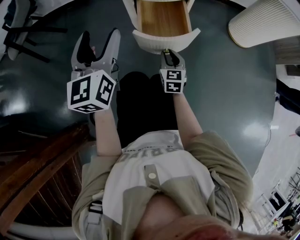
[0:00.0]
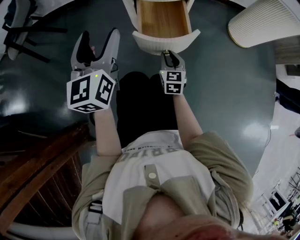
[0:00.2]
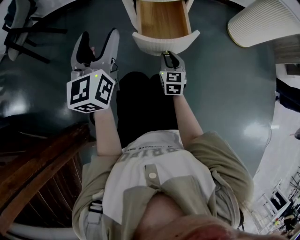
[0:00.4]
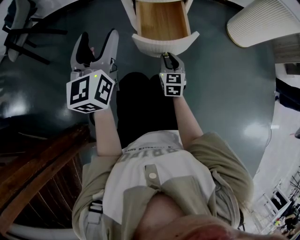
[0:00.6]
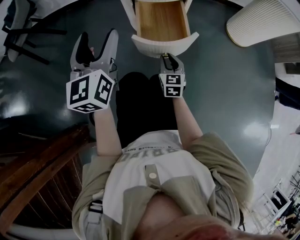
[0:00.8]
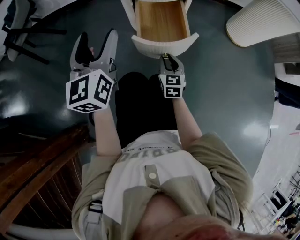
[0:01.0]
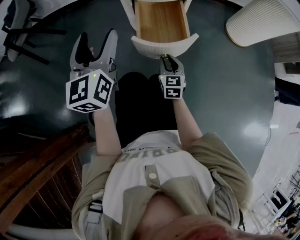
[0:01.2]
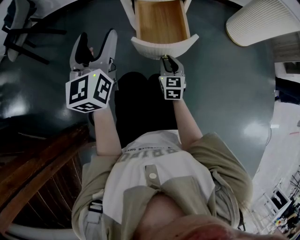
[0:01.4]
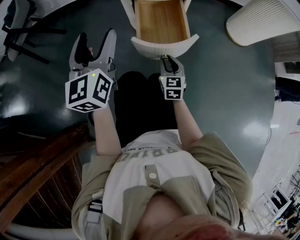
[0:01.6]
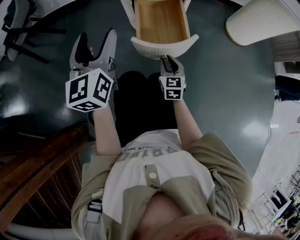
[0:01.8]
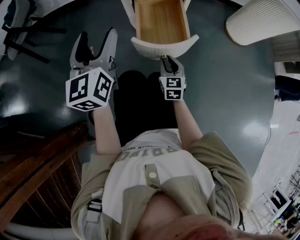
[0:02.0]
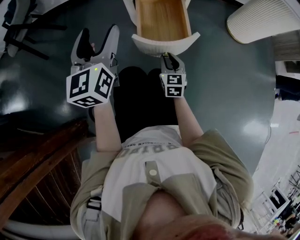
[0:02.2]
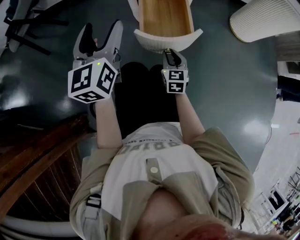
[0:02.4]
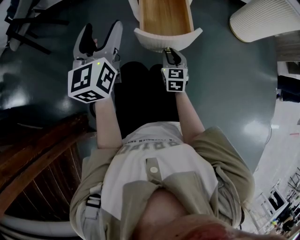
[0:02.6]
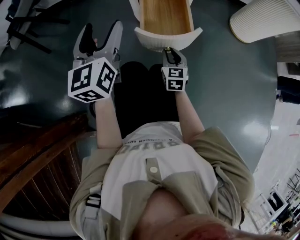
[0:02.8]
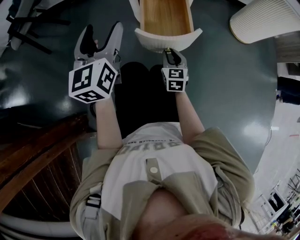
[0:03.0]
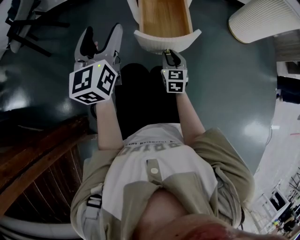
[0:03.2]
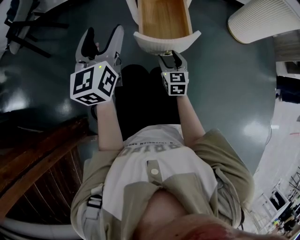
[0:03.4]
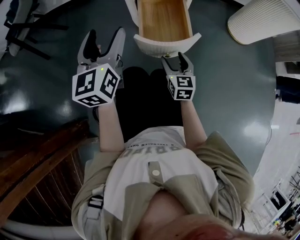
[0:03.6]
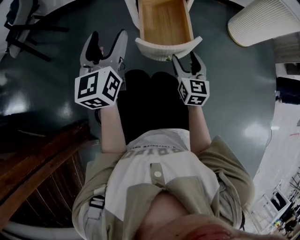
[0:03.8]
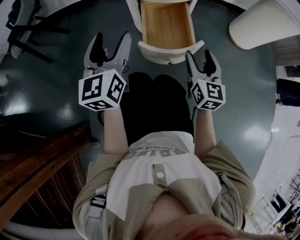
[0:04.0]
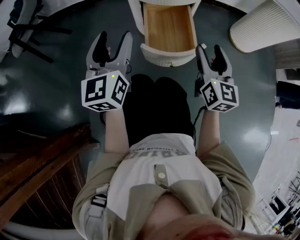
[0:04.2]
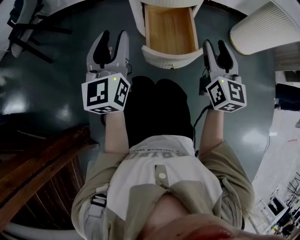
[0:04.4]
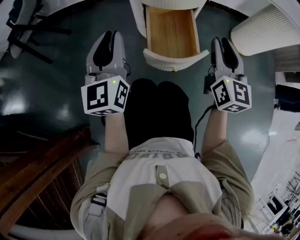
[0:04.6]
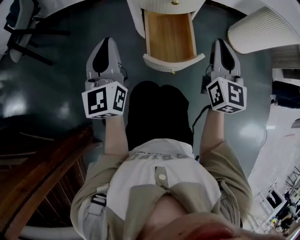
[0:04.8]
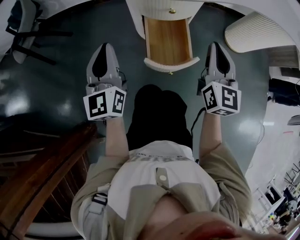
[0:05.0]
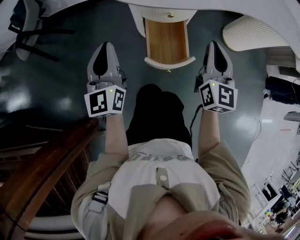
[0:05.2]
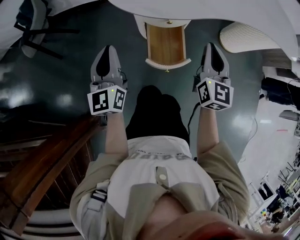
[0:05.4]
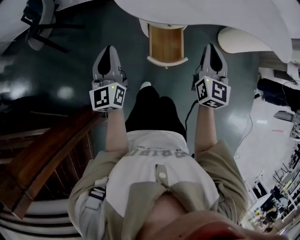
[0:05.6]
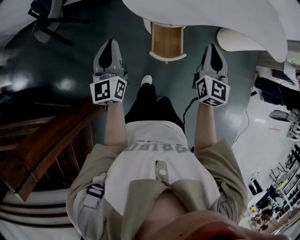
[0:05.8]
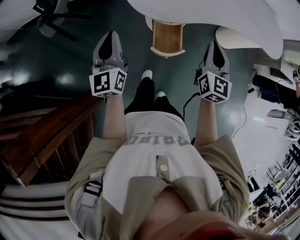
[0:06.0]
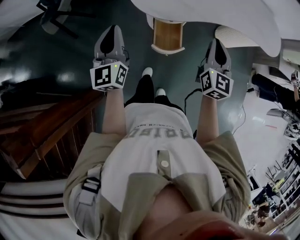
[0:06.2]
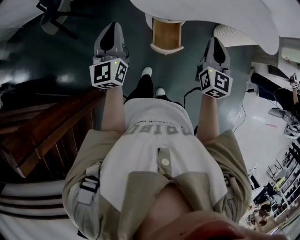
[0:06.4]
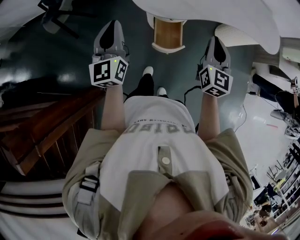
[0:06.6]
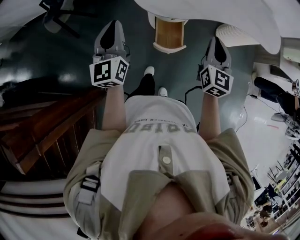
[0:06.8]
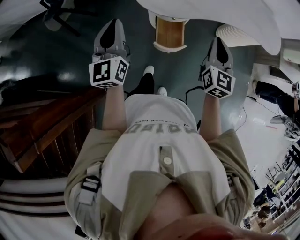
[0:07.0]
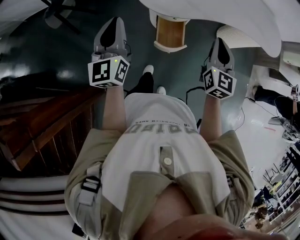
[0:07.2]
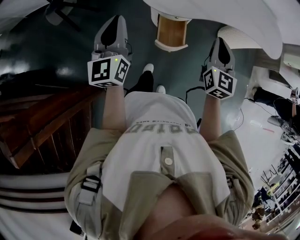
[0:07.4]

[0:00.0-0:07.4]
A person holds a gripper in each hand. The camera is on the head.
0:00.0 to 0:03.0: The grippers make only small movements.
0:03.0 to 0:04.4: The right gripper moves upward, approximately 25 cm, and turns by some 20 degrees. Meanwhile the left gripper closes.
0:04.4 to 0:06.0: The grippers both shift upward by some 40 cm. The right gripper closes up; the left gripper closes.
0:06.0 to 0:07.4: The left gripper is displaced upward by some 10 cm. Meanwhile the right gripper shifts approximately 5 cm upward.

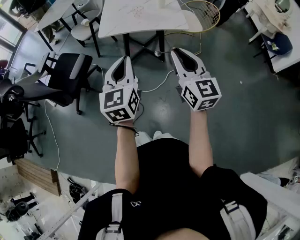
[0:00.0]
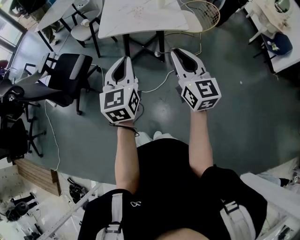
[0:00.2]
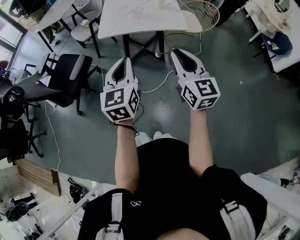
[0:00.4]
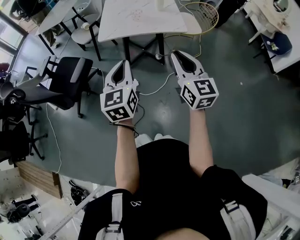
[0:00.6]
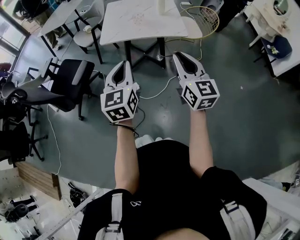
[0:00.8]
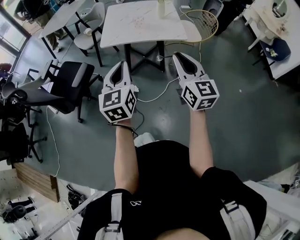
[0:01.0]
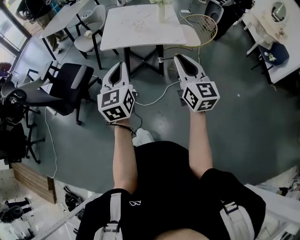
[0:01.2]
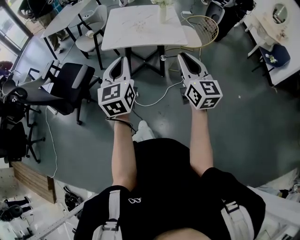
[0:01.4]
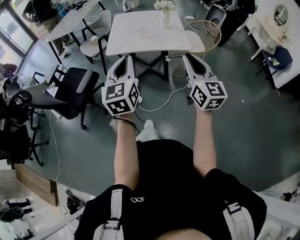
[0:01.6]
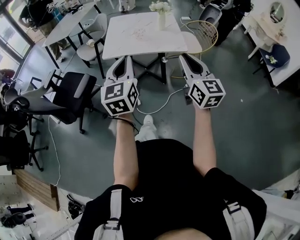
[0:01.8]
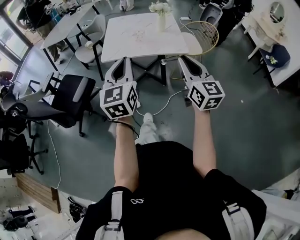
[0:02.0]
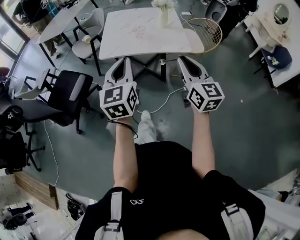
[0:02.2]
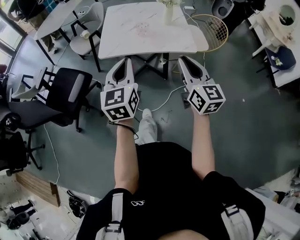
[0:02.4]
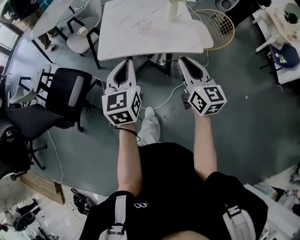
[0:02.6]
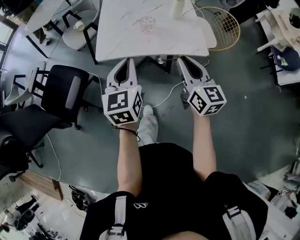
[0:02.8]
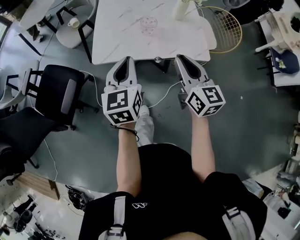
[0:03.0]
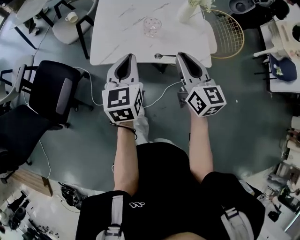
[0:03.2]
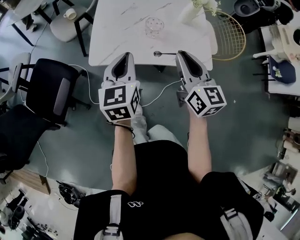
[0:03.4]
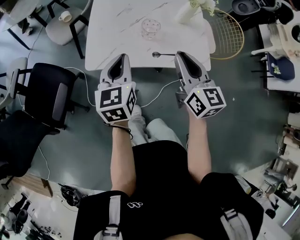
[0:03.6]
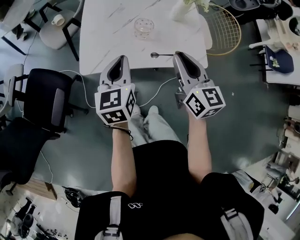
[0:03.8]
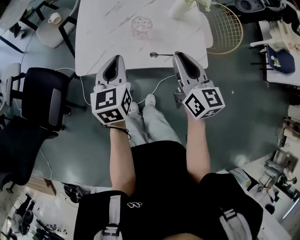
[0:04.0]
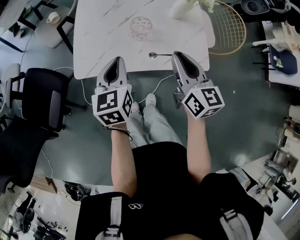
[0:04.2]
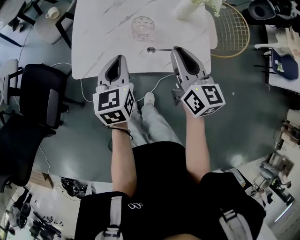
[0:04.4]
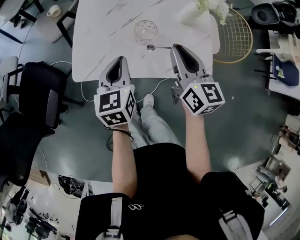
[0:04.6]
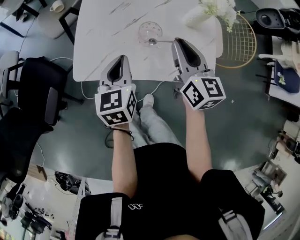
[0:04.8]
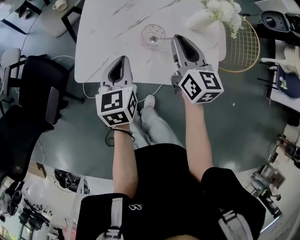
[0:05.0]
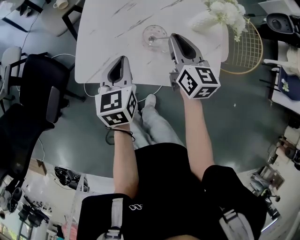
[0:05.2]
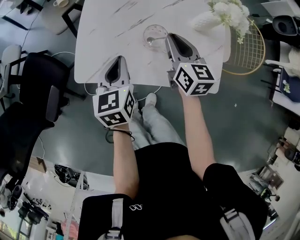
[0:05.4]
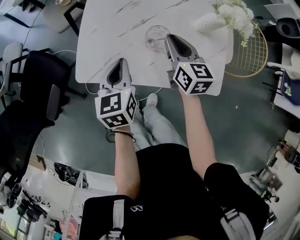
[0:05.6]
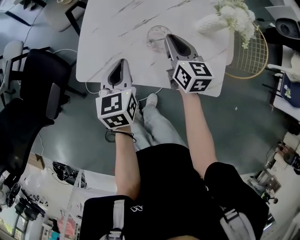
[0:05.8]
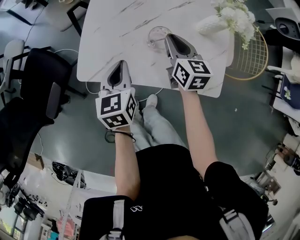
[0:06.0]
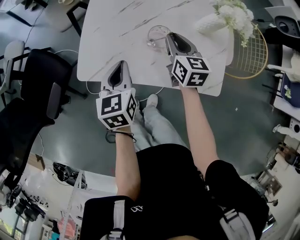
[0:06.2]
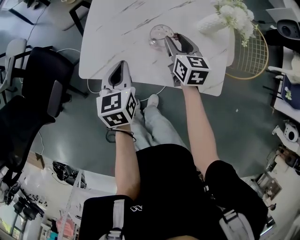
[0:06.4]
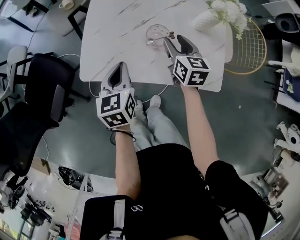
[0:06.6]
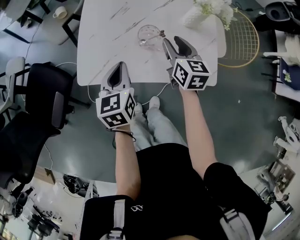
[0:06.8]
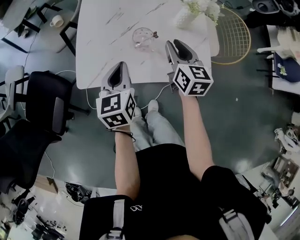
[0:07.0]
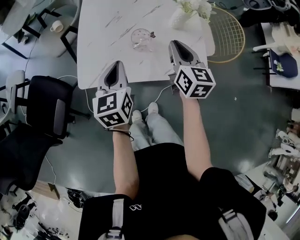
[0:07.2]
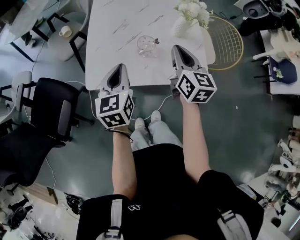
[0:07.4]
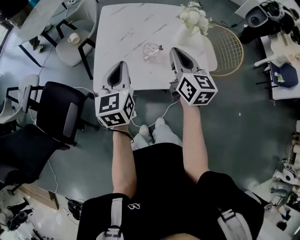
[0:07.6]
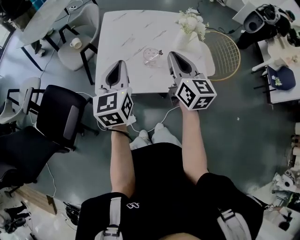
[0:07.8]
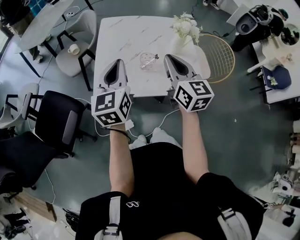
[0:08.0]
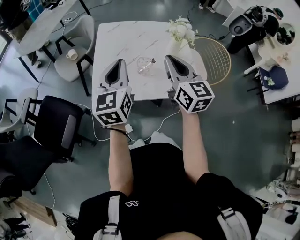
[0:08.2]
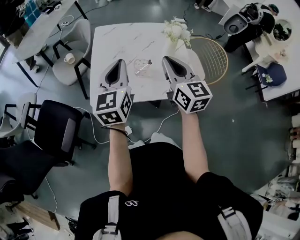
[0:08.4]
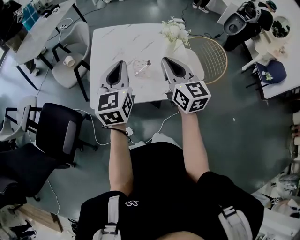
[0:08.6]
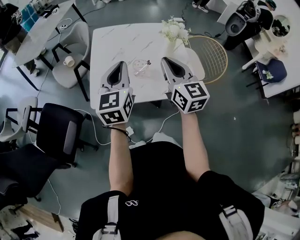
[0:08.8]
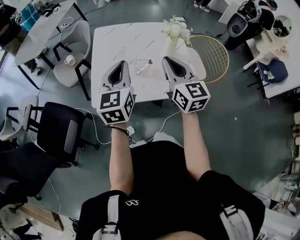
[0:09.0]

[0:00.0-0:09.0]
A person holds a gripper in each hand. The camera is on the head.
0:00.0 to 0:01.6: The left gripper heads forward, covering some 5 cm. Meanwhile the right gripper changes place by about 5 cm.
0:01.6 to 0:03.0: The right gripper moves forward, approximately 30 cm. Meanwhile the left gripper travels forward and downward by approximately 35 cm.
0:03.0 to 0:04.4: The right gripper travels forward by about 15 cm; the left gripper shifts approximately 15 cm forward and downward.
0:04.4 to 0:06.0: The left gripper moves downward, some 5 cm; the right gripper moves forward and downward, some 20 cm.
0:06.0 to 0:07.6: The left gripper moves upward, about 15 cm, and turns by some 20 degrees. The right gripper is displaced upward and backward by roughly 25 cm, changes its angle by approximately 20 degrees, and opens, then closes once more.
0:07.6 to 0:09.0: The right gripper changes place by some 5 cm. The left gripper travels upward by some 5 cm.

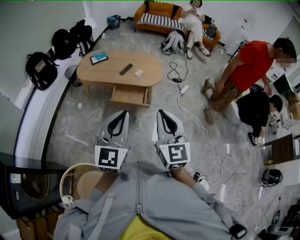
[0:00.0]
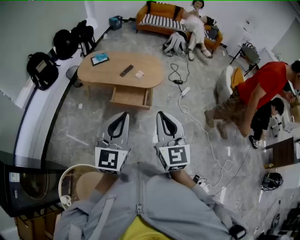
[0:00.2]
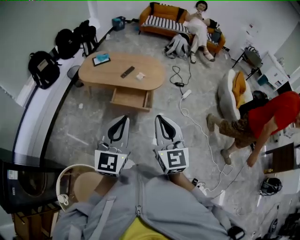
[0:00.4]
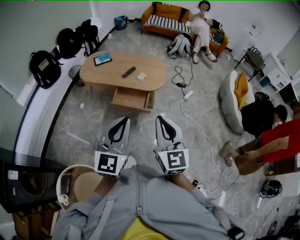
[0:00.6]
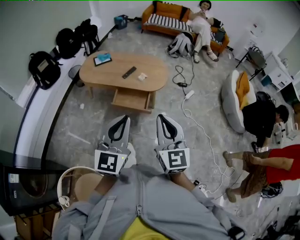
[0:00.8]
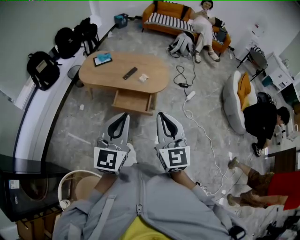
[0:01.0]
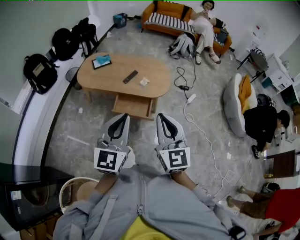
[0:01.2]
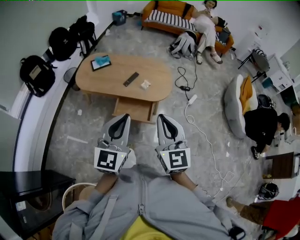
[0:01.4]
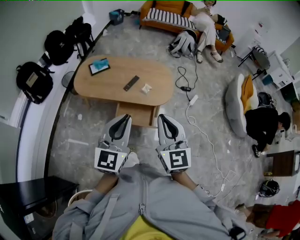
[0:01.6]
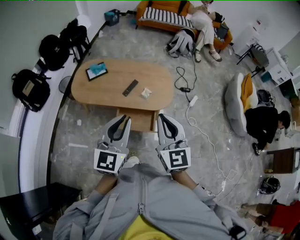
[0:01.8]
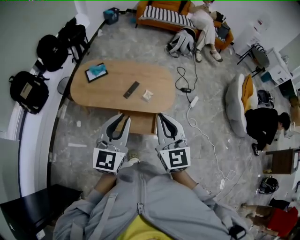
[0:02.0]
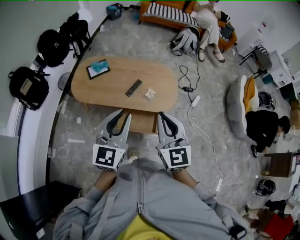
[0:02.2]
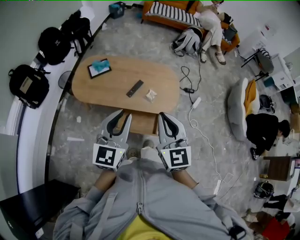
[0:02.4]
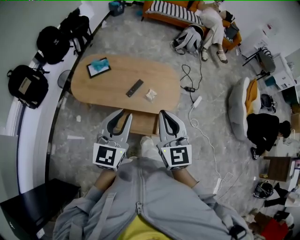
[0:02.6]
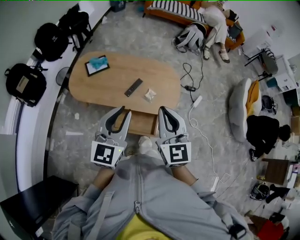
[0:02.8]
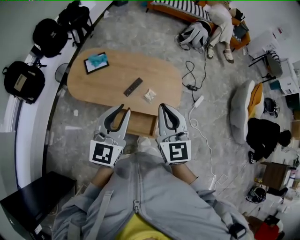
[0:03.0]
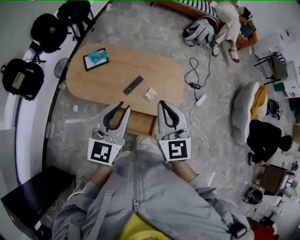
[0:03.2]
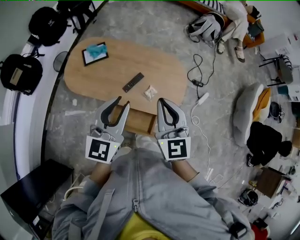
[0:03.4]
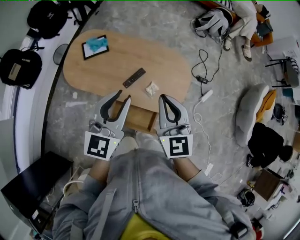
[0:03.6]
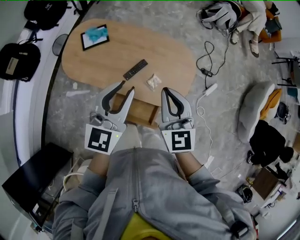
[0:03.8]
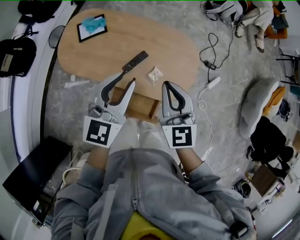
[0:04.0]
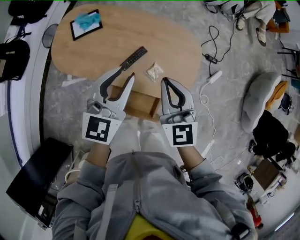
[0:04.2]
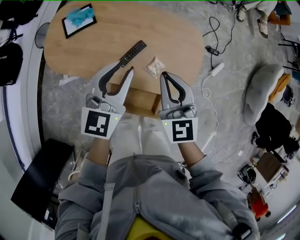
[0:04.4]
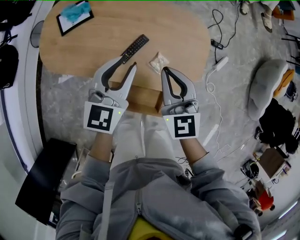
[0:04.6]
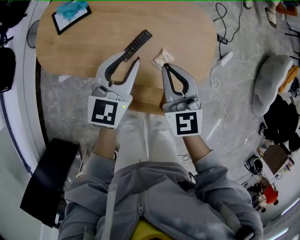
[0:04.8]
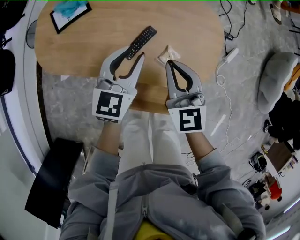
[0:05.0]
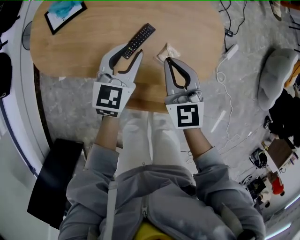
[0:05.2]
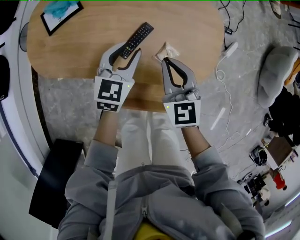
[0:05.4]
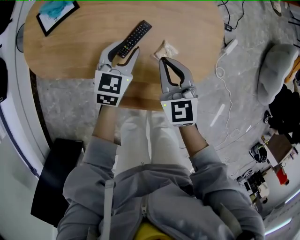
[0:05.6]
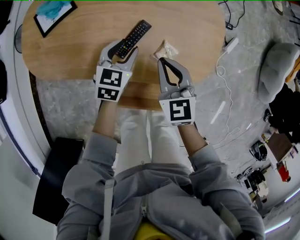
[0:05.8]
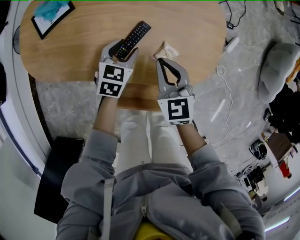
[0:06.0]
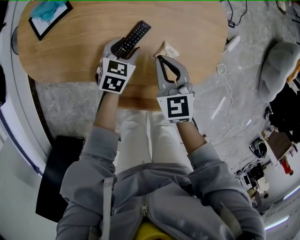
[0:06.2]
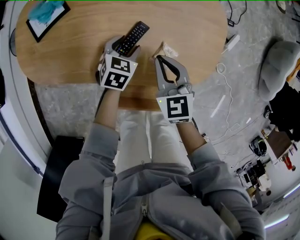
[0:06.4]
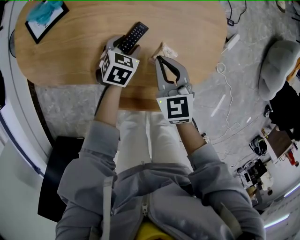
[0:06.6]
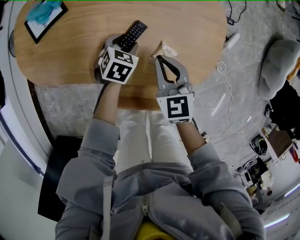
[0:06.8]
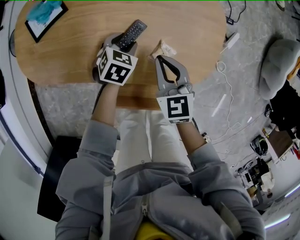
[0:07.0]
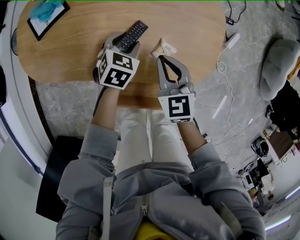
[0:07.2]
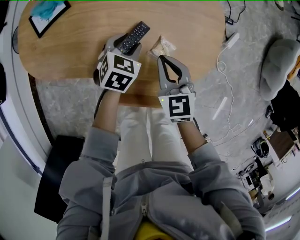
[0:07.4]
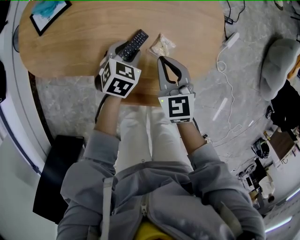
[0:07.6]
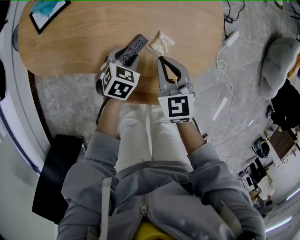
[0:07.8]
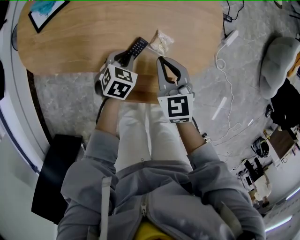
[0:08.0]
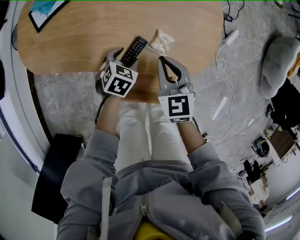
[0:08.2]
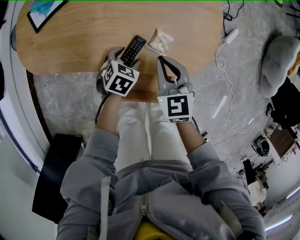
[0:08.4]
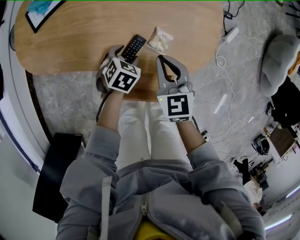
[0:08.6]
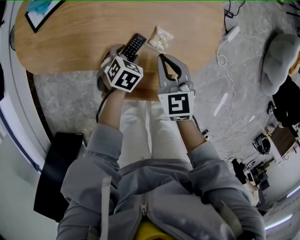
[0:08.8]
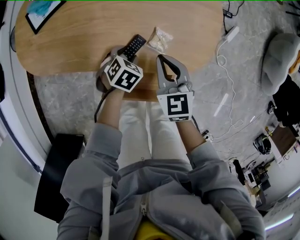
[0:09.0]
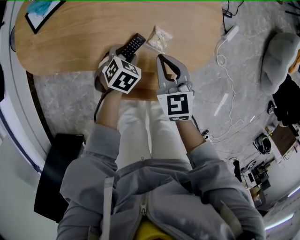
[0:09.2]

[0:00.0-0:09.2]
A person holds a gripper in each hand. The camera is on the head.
0:00.0 to 0:01.6: The two grippers go roughly 30 cm forward.
0:01.6 to 0:03.0: Both grippers move forward, roughly 25 cm.
0:03.0 to 0:04.6: The two grippers go approximately 35 cm downward and forward.
0:04.6 to 0:06.2: The left gripper goes roughly 30 cm downward, tips its fingers downward by roughly 30 degrees, and opens. Meanwhile the right gripper moves downward, some 20 cm.
0:06.2 to 0:07.6: The left gripper shifts by about 5 cm.
0:07.6 to 0:09.2: The left gripper shifts about 5 cm downward and backward.
